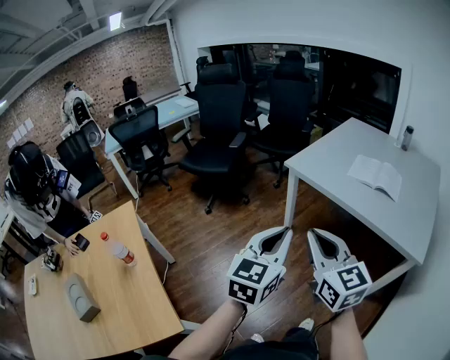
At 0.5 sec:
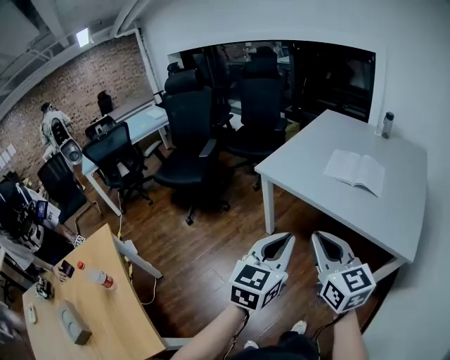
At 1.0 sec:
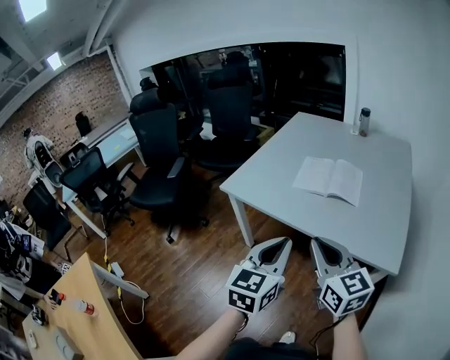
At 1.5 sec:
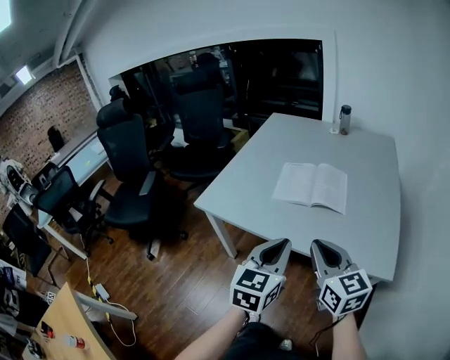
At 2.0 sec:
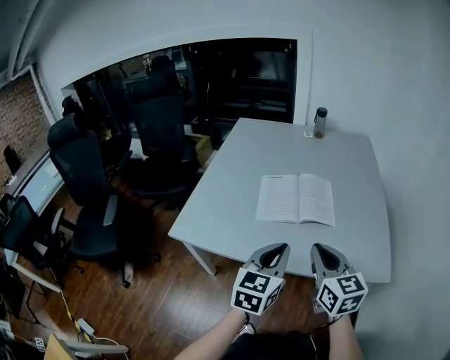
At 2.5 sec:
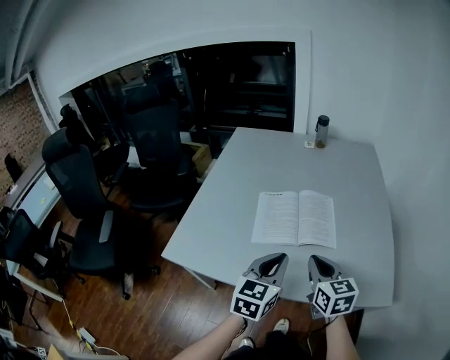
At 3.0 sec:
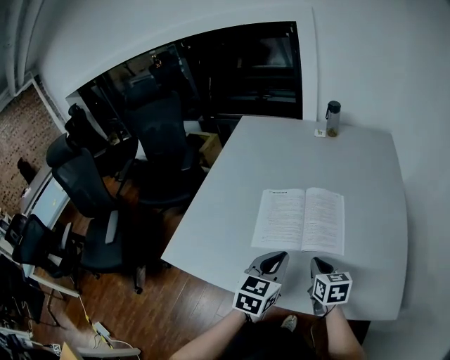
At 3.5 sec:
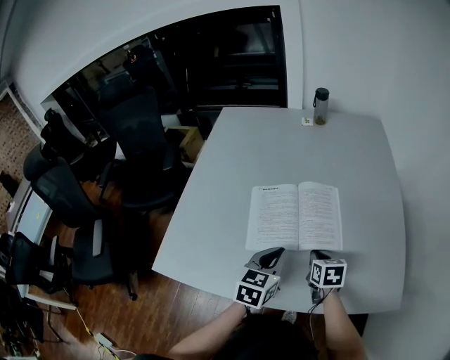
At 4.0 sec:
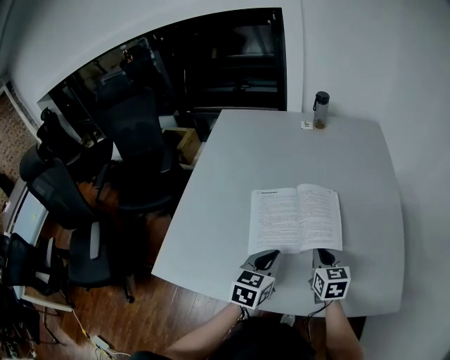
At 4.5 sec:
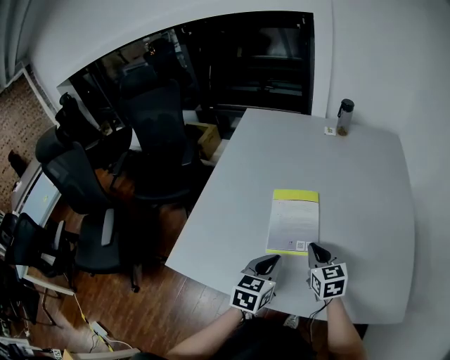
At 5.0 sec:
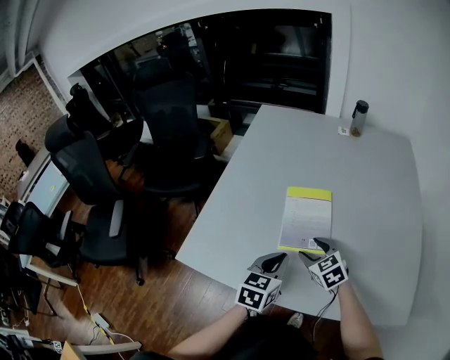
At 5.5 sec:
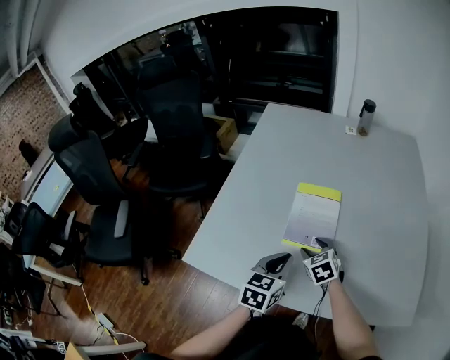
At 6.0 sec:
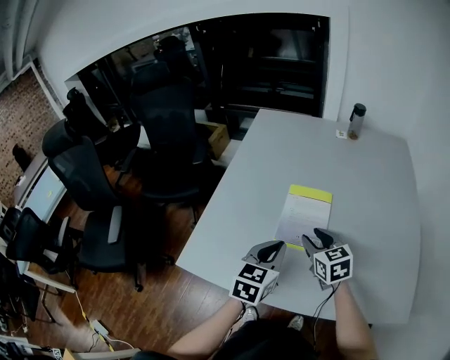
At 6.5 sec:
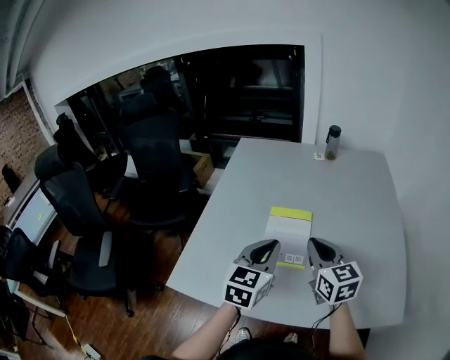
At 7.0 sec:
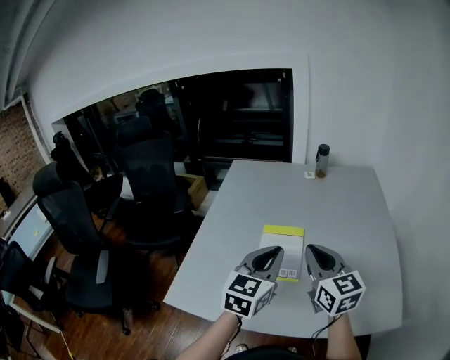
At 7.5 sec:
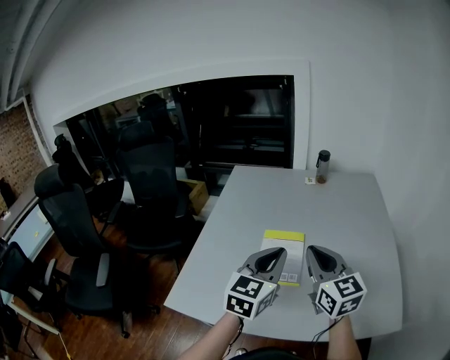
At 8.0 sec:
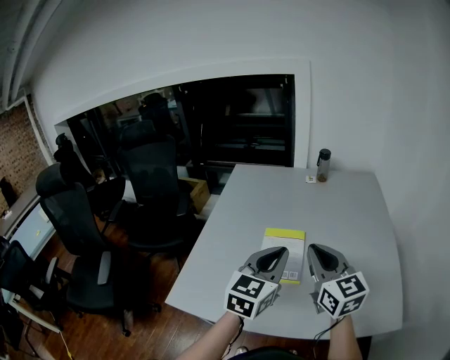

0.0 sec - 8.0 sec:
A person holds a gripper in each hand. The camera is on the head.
0.0 sec - 2.0 sec: The two grippers travel together, about 50 cm. The right gripper rotates roughly 40 degrees; the left gripper swivels about 30 degrees.
2.0 sec - 4.0 sec: The two grippers go roughly 25 cm forward and downward.
4.0 sec - 6.0 sec: The left gripper moves to the left, about 10 cm. Meanwhile the right gripper shifts roughly 15 cm to the left, rotates some 20 degrees, and opens up.
6.0 sec - 8.0 sec: The left gripper moves upward and to the right, approximately 15 cm, while the right gripper goes about 20 cm upward, turns by some 30 degrees, and closes its fingers.

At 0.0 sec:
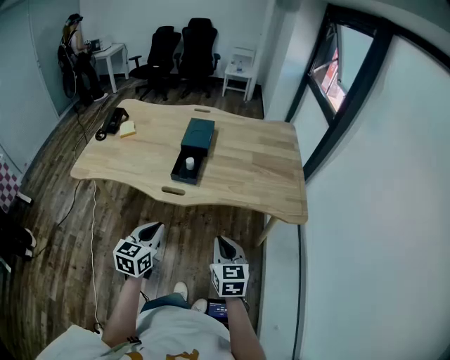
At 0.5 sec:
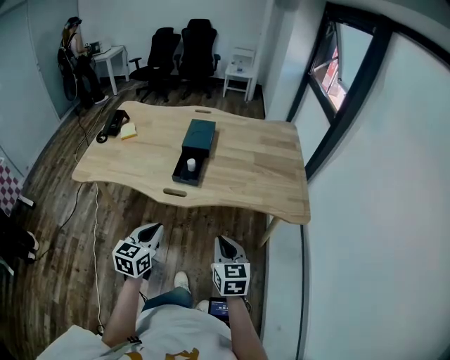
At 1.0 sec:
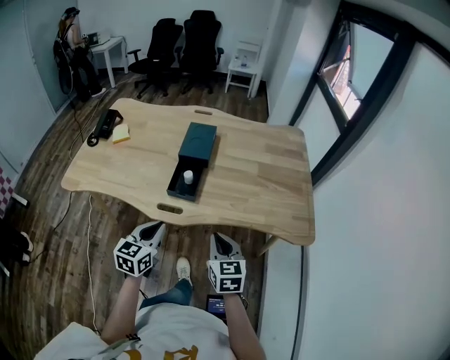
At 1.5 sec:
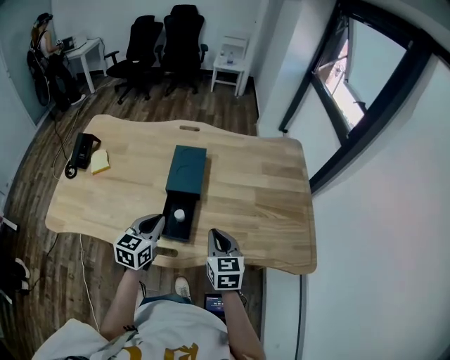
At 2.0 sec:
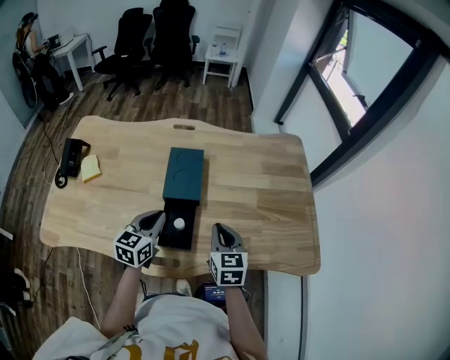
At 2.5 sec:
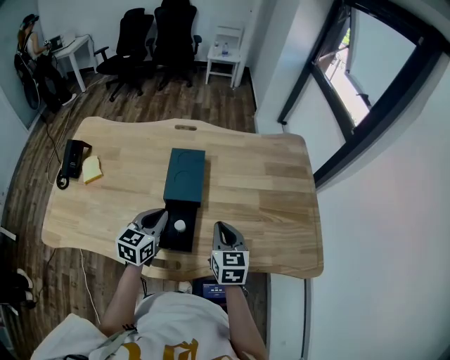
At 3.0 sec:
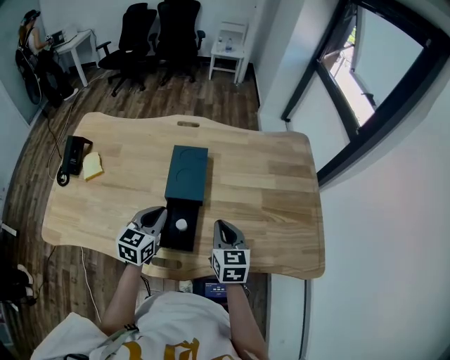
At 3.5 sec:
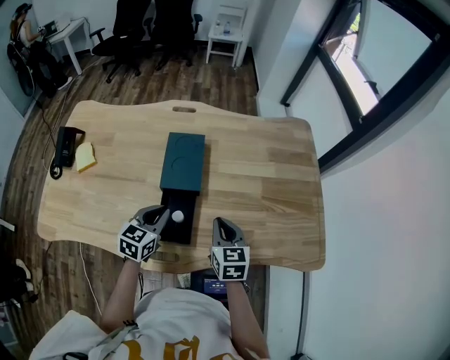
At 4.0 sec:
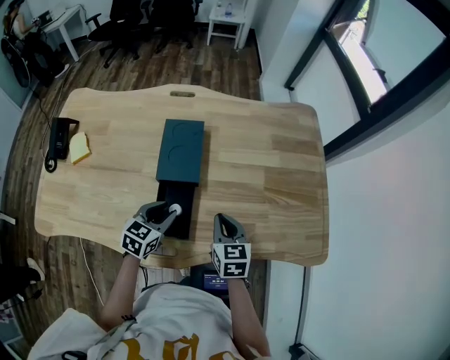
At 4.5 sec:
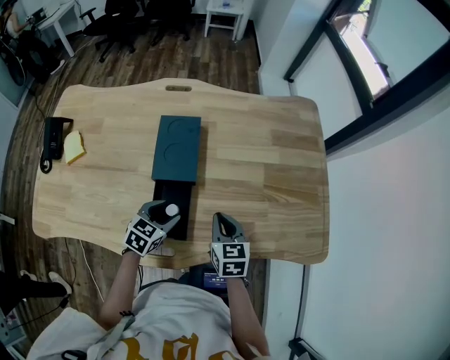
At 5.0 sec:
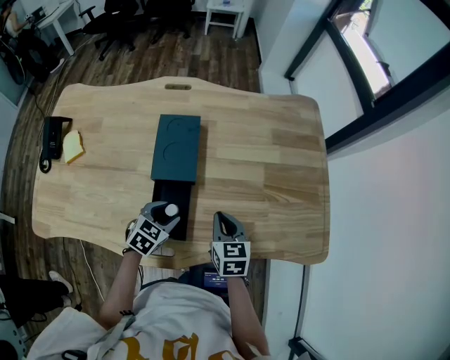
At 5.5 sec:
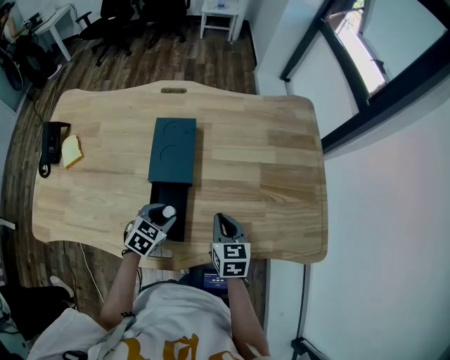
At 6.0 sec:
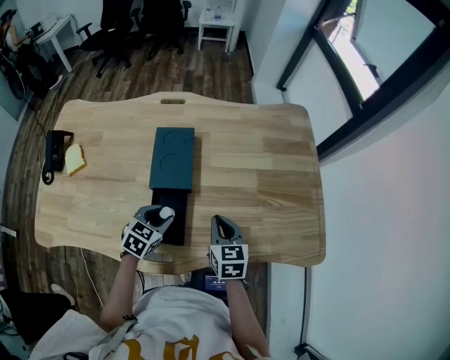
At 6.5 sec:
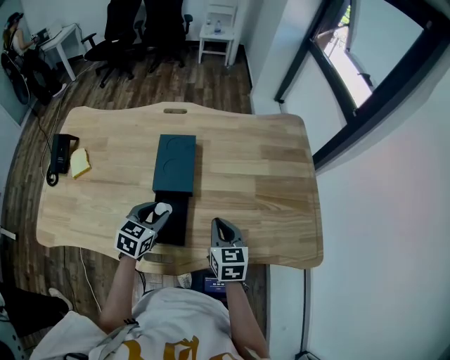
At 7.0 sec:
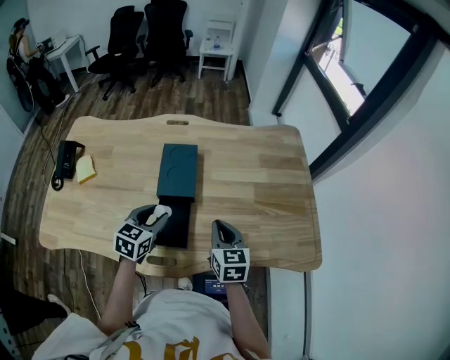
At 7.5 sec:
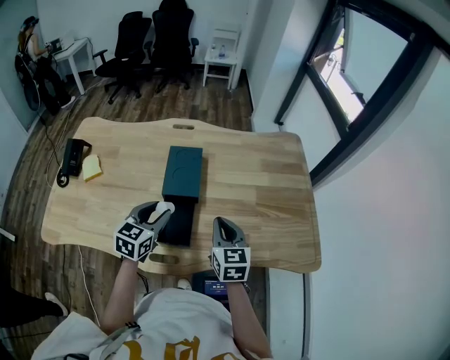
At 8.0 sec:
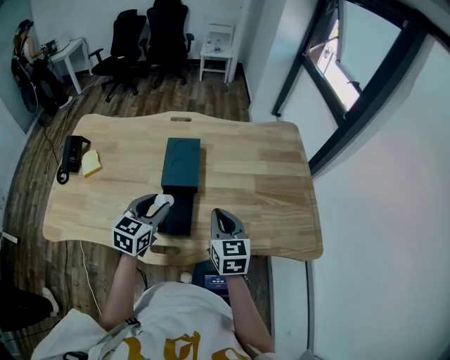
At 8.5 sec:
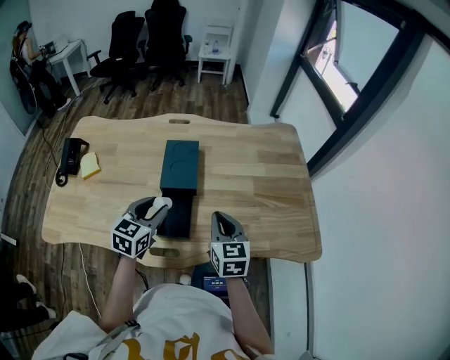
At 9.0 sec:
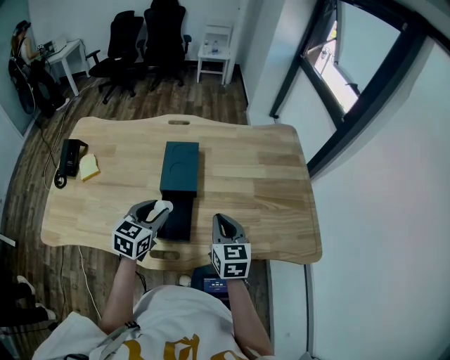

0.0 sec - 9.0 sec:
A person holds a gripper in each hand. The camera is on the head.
0.0 sec - 2.0 sec: Both grippers travel together forward, some 40 cm.
2.0 sec - 4.5 sec: Both grippers travel together downward, some 10 cm. The left gripper rotates some 30 degrees, and opens up.
4.5 sec - 7.0 sec: The grippers both shift upward by approximately 10 cm.
7.0 sec - 9.0 sec: The grippers move only a little.

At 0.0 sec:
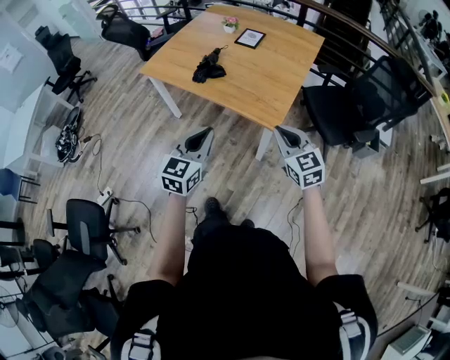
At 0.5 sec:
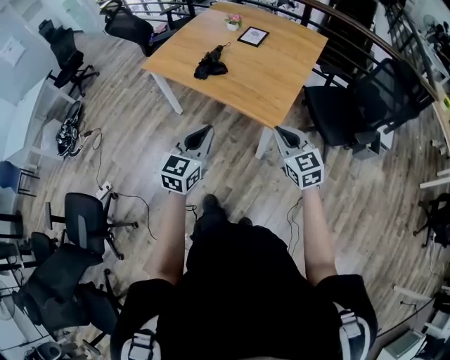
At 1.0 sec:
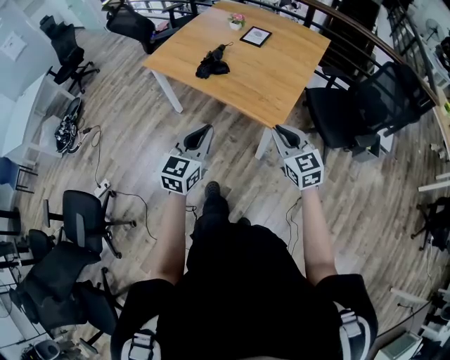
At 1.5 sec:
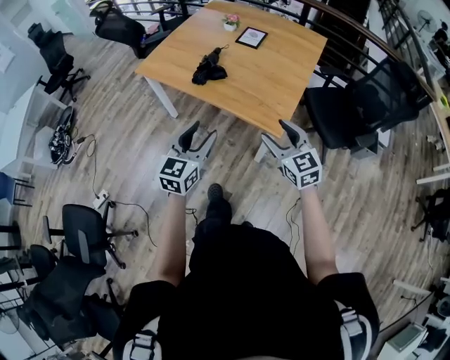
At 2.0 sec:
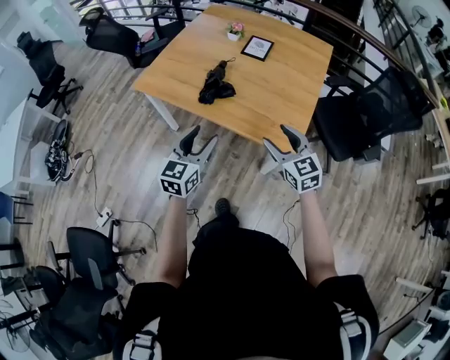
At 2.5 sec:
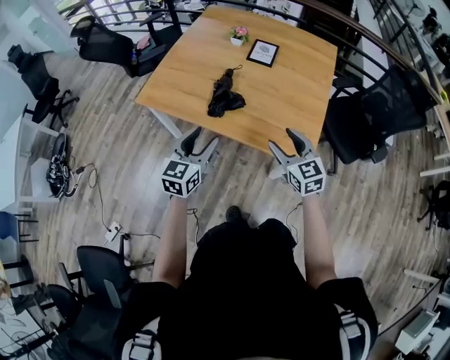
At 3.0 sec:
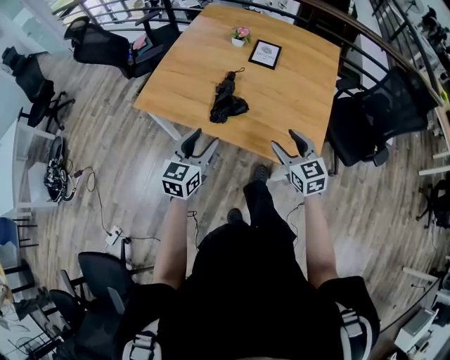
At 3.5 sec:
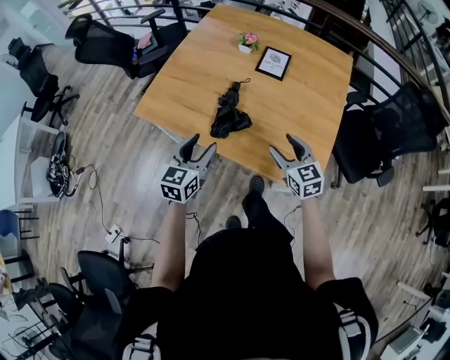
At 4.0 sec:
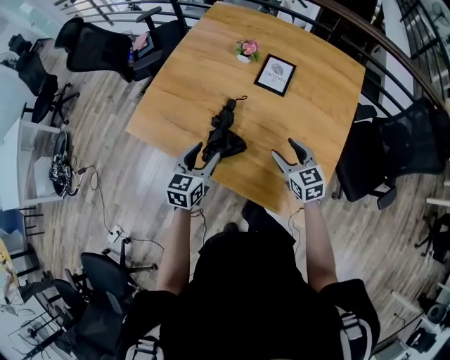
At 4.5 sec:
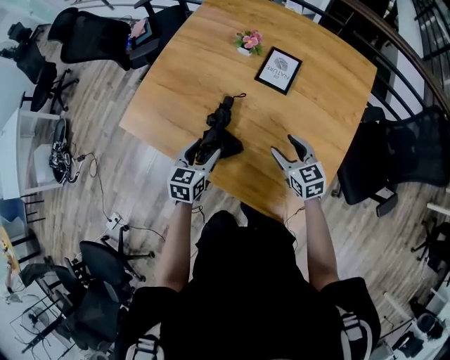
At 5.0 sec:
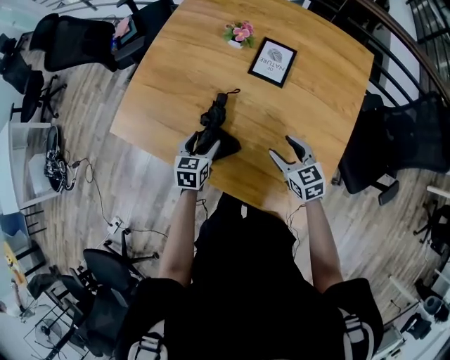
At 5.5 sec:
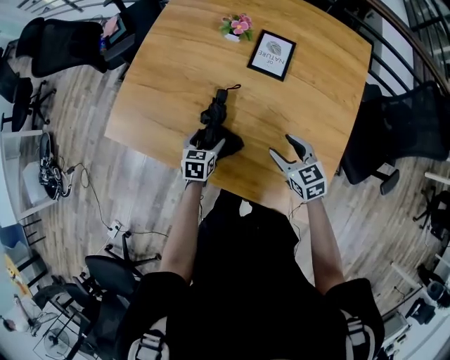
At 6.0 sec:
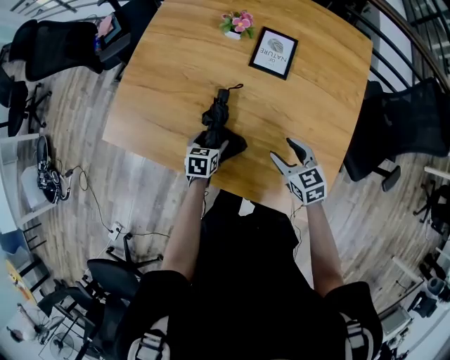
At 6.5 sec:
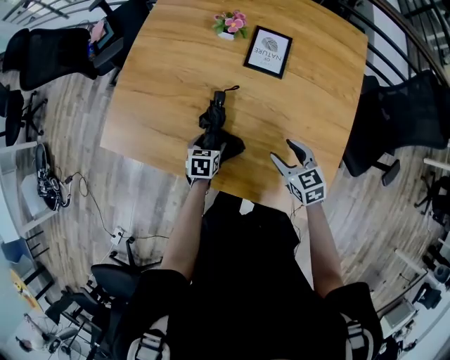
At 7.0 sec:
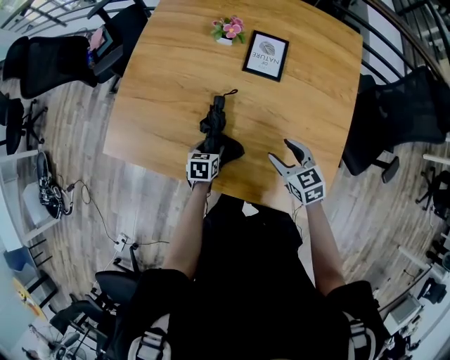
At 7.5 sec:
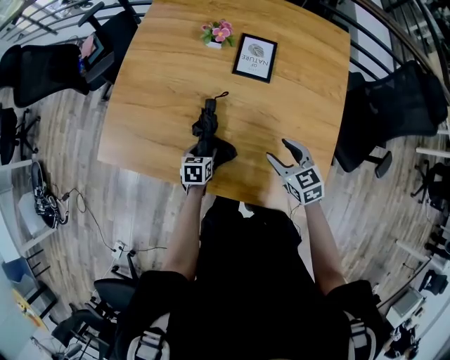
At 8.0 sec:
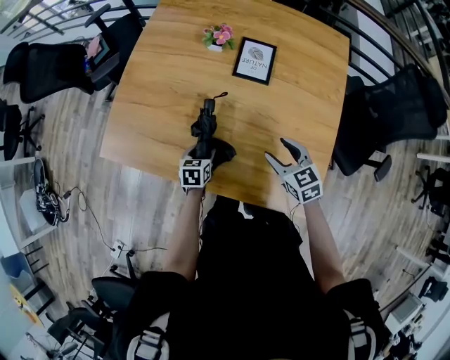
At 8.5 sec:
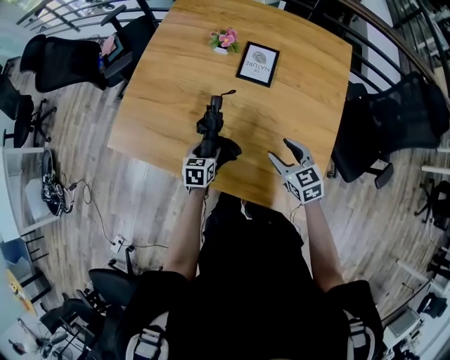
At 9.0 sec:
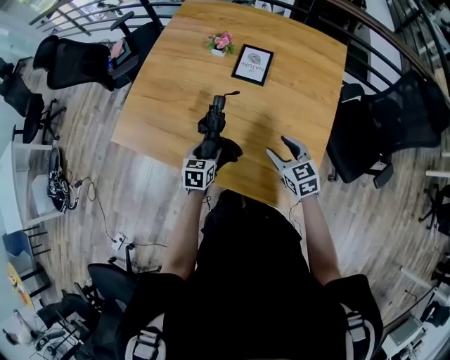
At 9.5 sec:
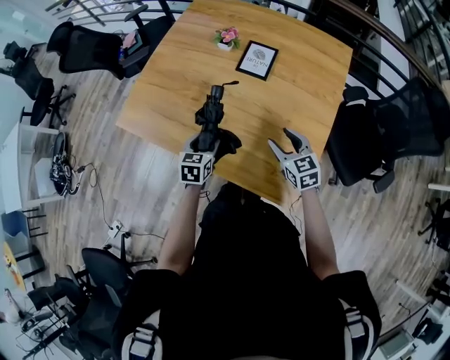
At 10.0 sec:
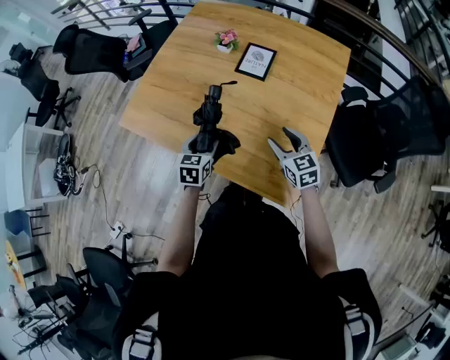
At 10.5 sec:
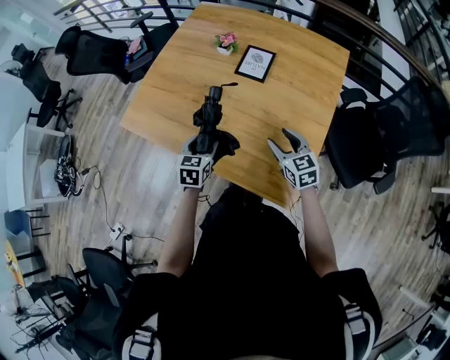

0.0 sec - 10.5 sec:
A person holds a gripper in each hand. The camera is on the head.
0.0 sec - 2.0 sec: The grippers both shift forward and to the left by about 20 cm. The right gripper opens its fingers, while the left gripper opens its fingers.
2.0 sec - 4.0 sec: The grippers both shift forward by approximately 30 cm.
4.0 sec - 6.5 sec: The right gripper travels downward by about 10 cm; the left gripper shifts approximately 25 cm downward, and changes its angle by approximately 30 degrees.
6.5 sec - 8.5 sec: The two grippers go about 5 cm upward.
8.5 sec - 10.5 sec: The right gripper moves to the right, some 5 cm, while the left gripper goes about 15 cm upward and backward.
